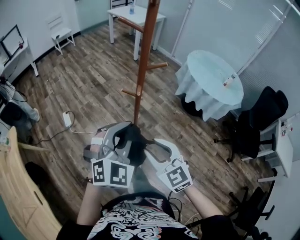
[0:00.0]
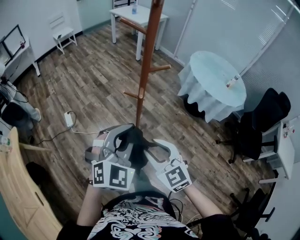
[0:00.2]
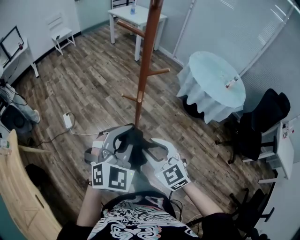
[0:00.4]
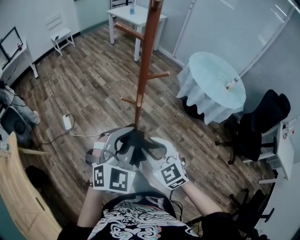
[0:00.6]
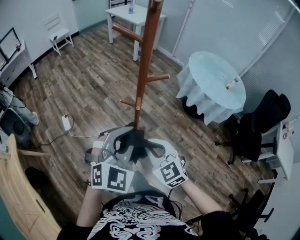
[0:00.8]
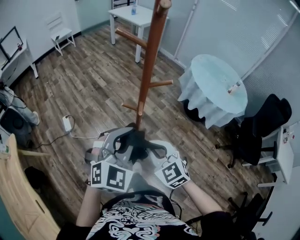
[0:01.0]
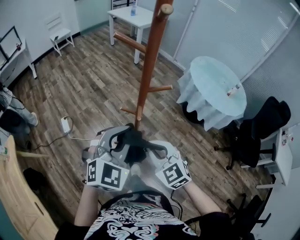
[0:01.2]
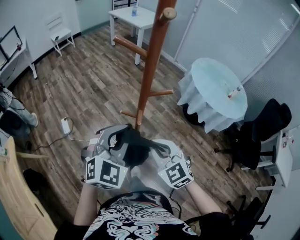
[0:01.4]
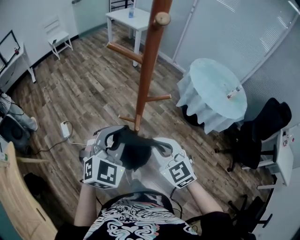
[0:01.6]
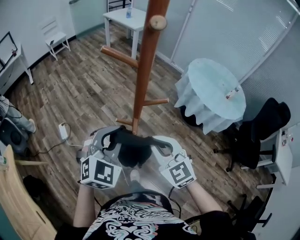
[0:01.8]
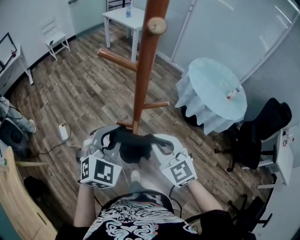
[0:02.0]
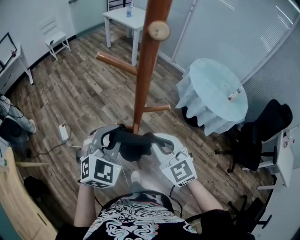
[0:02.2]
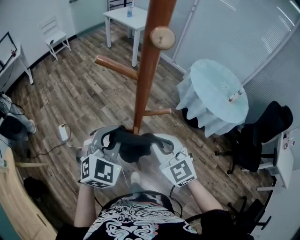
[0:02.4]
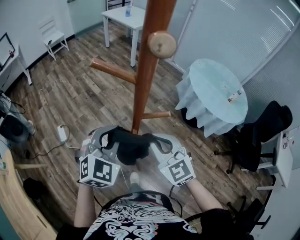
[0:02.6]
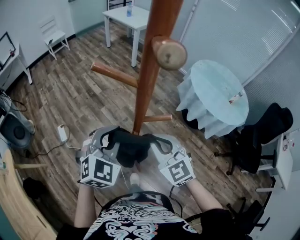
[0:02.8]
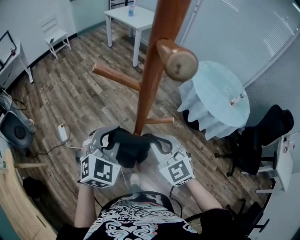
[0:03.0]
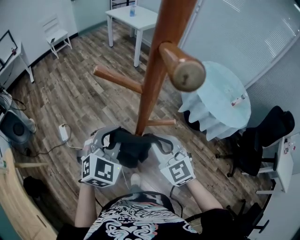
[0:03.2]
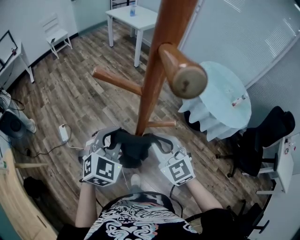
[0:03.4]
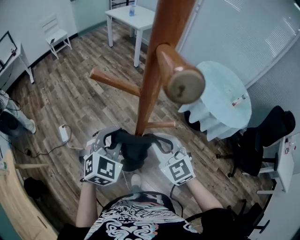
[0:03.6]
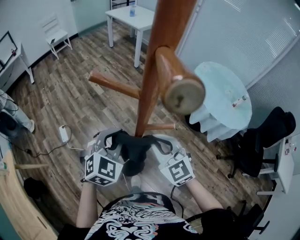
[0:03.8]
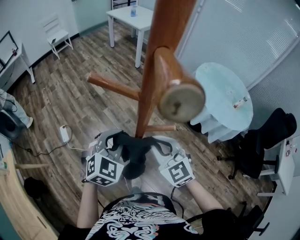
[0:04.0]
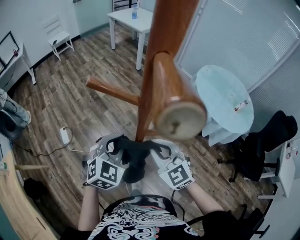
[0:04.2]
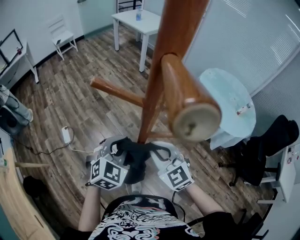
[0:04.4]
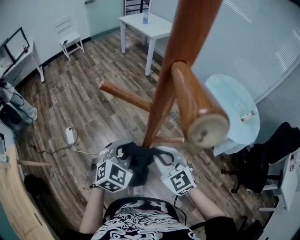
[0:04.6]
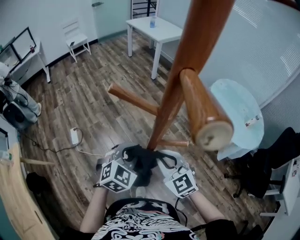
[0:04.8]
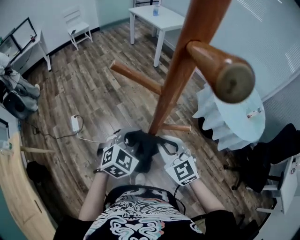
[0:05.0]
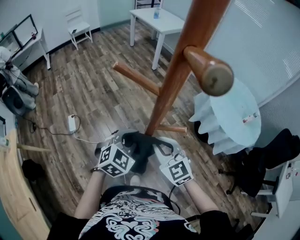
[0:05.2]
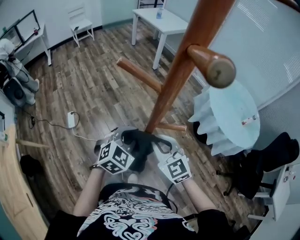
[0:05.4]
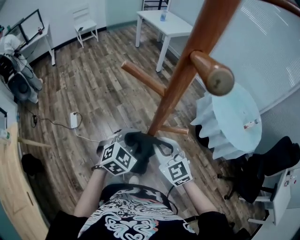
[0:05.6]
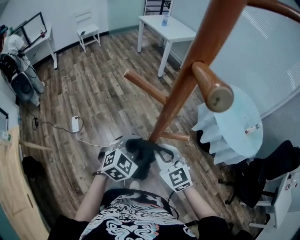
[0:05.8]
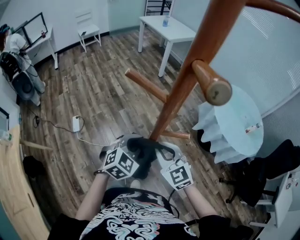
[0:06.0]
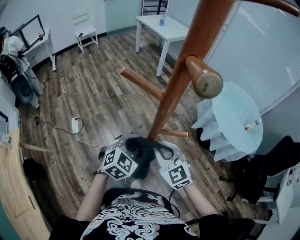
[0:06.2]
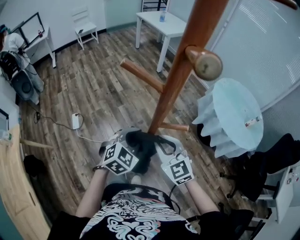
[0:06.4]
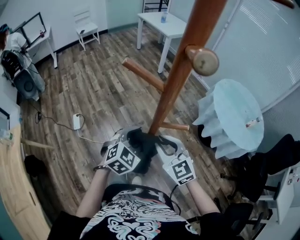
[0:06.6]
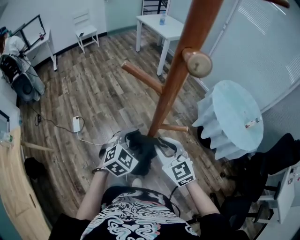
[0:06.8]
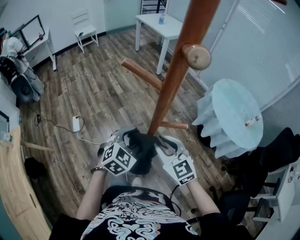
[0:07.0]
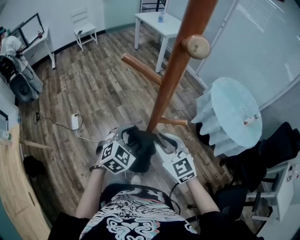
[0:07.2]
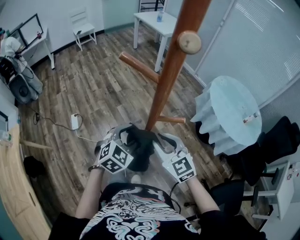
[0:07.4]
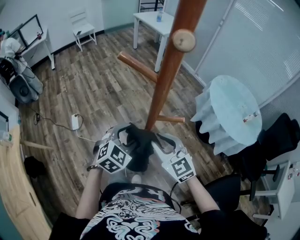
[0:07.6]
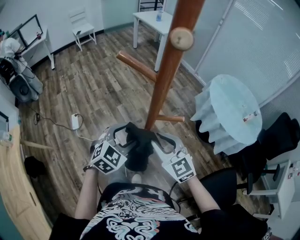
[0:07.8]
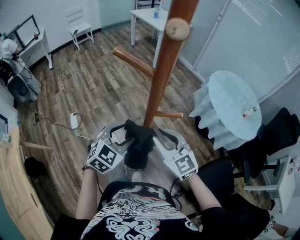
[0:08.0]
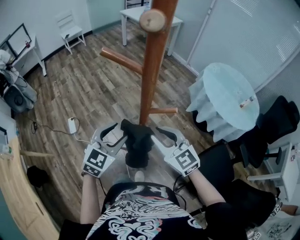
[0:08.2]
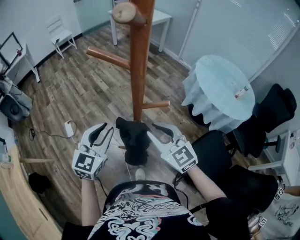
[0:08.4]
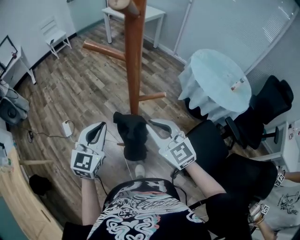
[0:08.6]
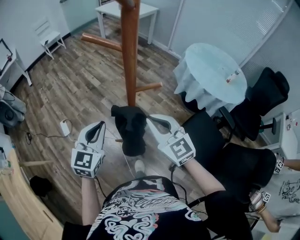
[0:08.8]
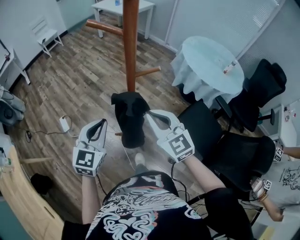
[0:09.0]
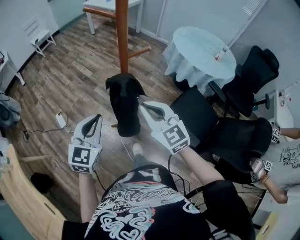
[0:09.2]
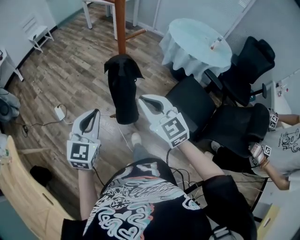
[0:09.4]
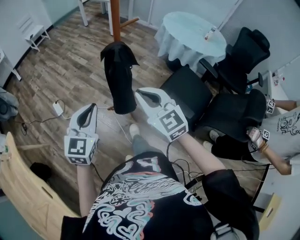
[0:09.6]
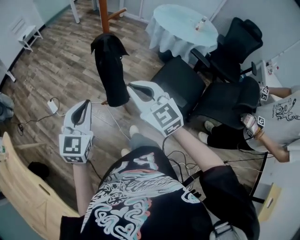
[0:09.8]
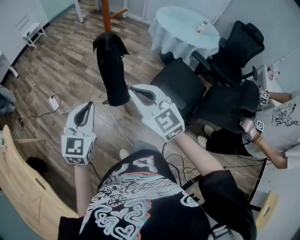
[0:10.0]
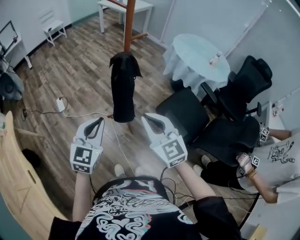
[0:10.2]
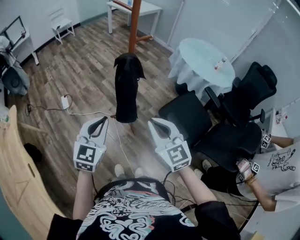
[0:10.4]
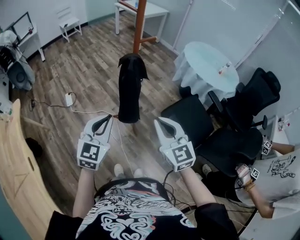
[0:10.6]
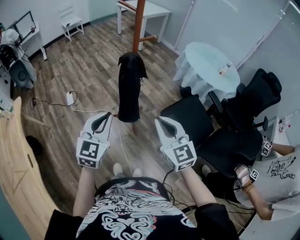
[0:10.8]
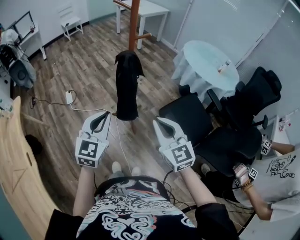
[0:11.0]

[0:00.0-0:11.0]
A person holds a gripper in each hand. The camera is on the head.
0:00.0 to 0:01.6: The two grippers go about 15 cm forward. The right gripper closes its fingers.
0:01.6 to 0:03.2: Both grippers travel together forward, about 10 cm.
0:03.2 to 0:04.8: The left gripper travels downward by roughly 10 cm.
0:04.8 to 0:06.2: There are only small adjustments of the grippers.
0:06.2 to 0:07.8: The right gripper opens up. The left gripper opens.
0:07.8 to 0:09.4: The right gripper shifts about 20 cm backward, and closes; the left gripper goes roughly 25 cm backward and to the left, swivels some 20 degrees, and closes its fingers.
0:09.4 to 0:11.0: The grippers both shift backward and to the right by about 20 cm.

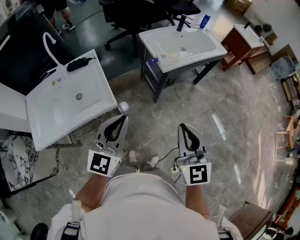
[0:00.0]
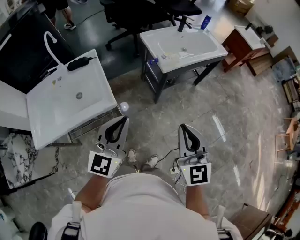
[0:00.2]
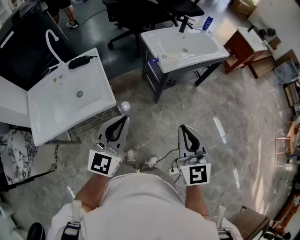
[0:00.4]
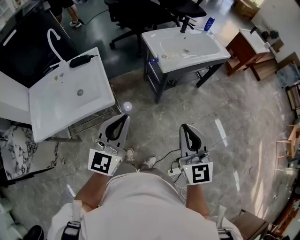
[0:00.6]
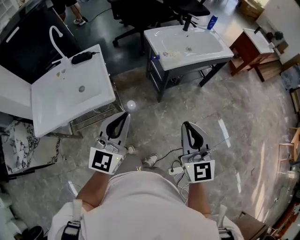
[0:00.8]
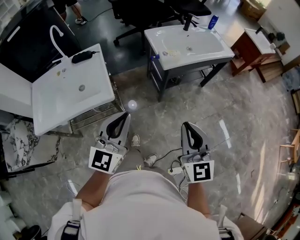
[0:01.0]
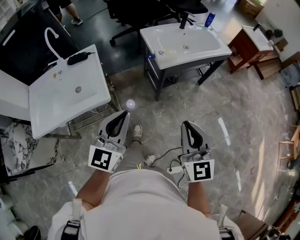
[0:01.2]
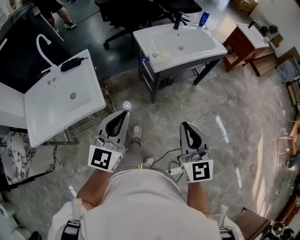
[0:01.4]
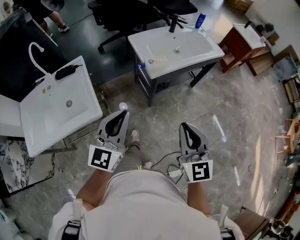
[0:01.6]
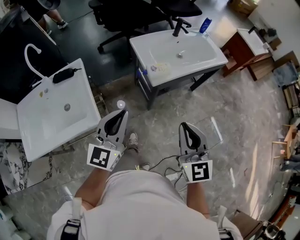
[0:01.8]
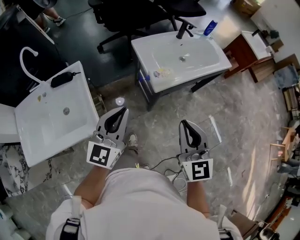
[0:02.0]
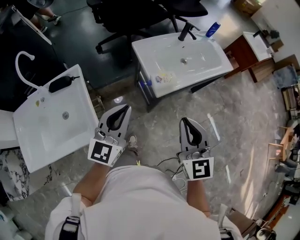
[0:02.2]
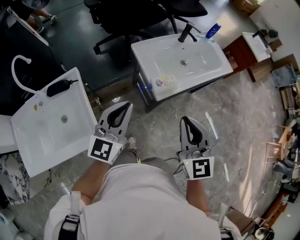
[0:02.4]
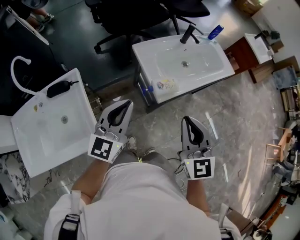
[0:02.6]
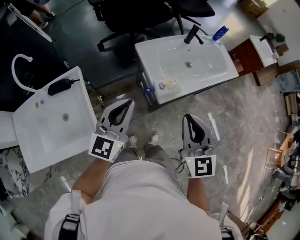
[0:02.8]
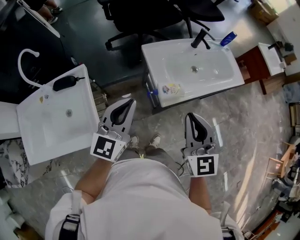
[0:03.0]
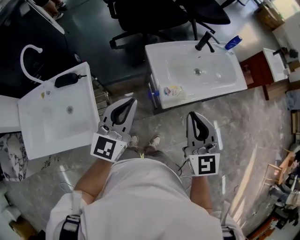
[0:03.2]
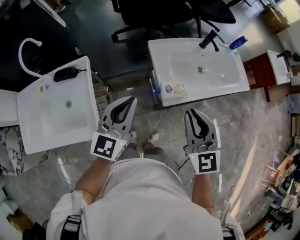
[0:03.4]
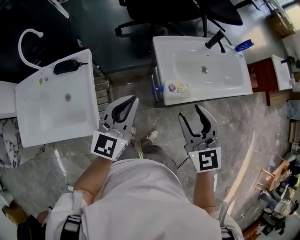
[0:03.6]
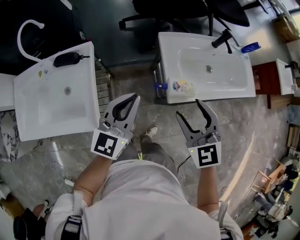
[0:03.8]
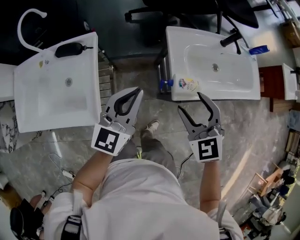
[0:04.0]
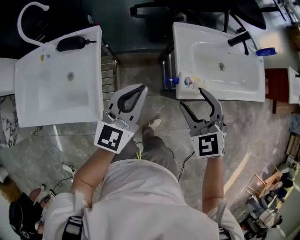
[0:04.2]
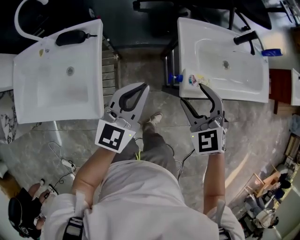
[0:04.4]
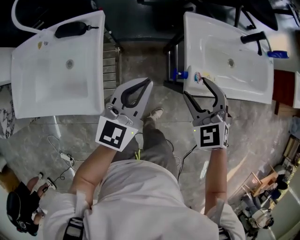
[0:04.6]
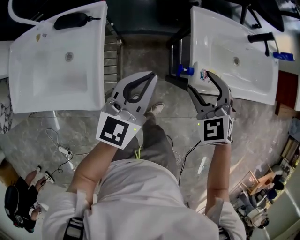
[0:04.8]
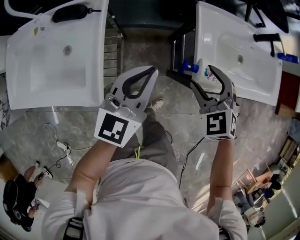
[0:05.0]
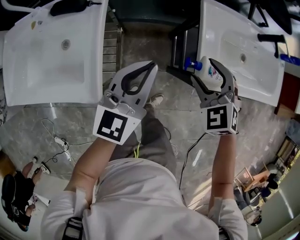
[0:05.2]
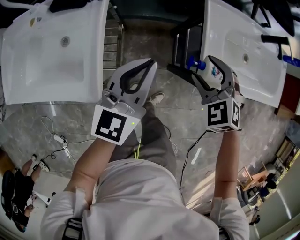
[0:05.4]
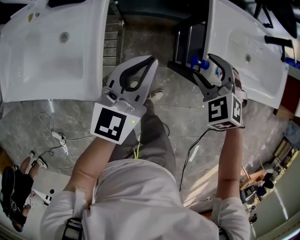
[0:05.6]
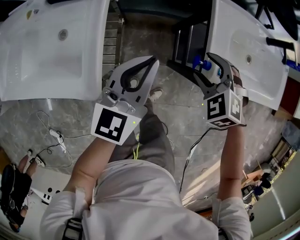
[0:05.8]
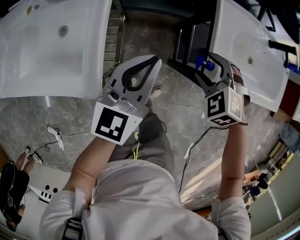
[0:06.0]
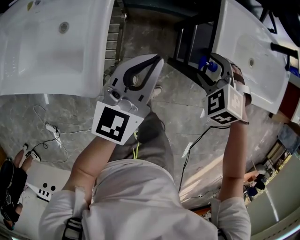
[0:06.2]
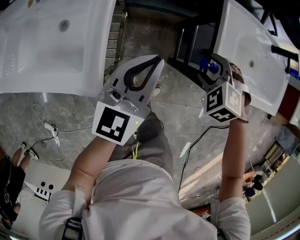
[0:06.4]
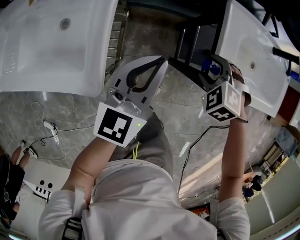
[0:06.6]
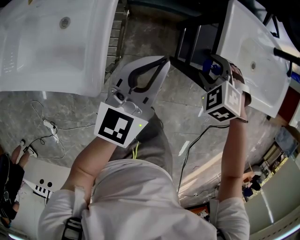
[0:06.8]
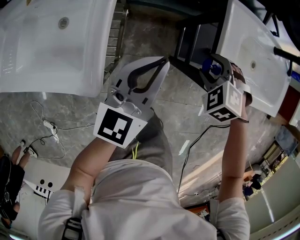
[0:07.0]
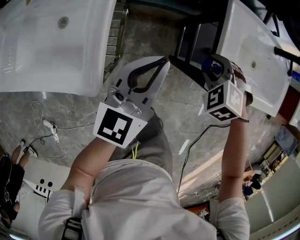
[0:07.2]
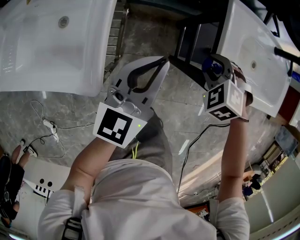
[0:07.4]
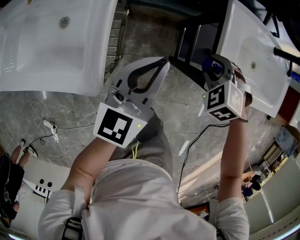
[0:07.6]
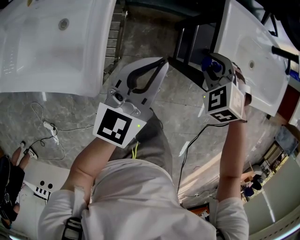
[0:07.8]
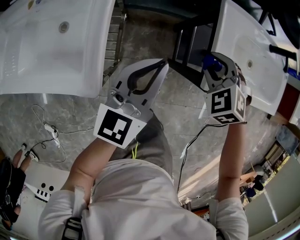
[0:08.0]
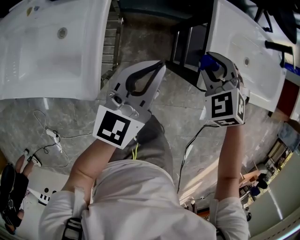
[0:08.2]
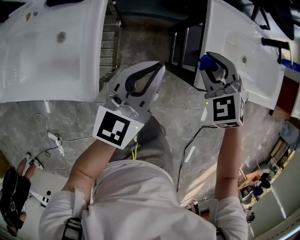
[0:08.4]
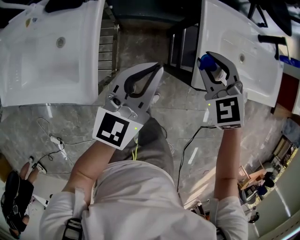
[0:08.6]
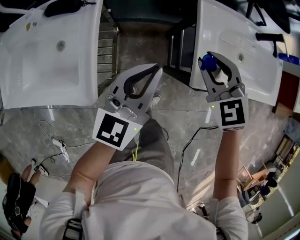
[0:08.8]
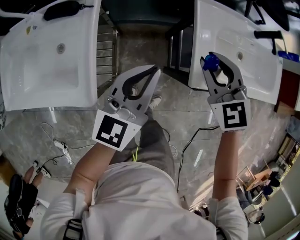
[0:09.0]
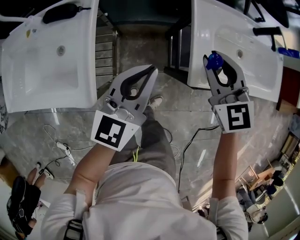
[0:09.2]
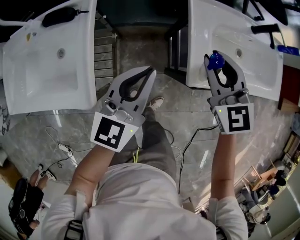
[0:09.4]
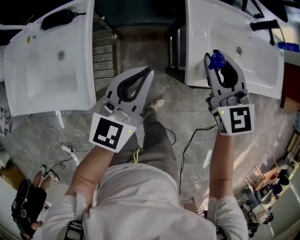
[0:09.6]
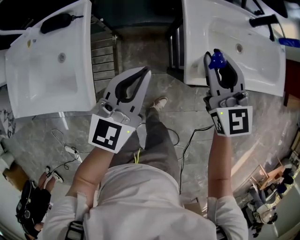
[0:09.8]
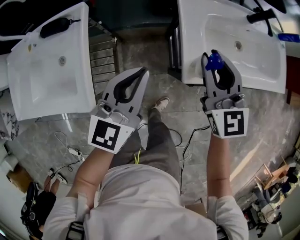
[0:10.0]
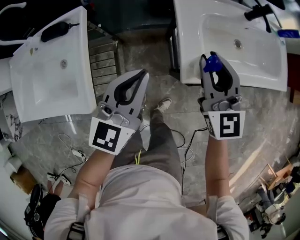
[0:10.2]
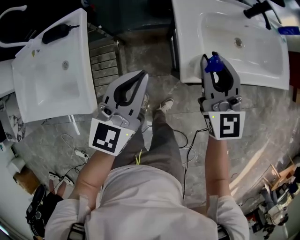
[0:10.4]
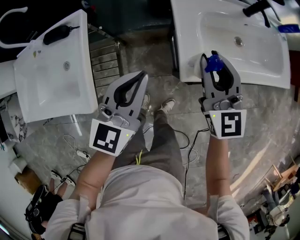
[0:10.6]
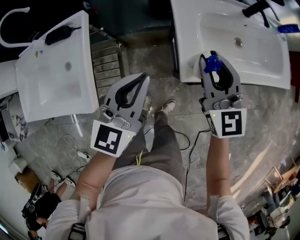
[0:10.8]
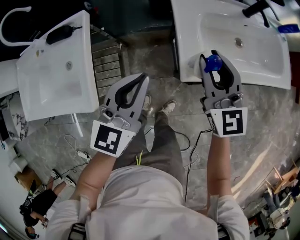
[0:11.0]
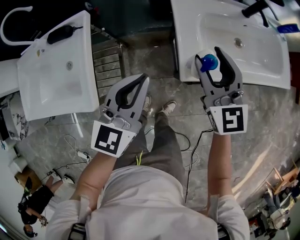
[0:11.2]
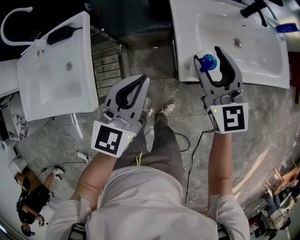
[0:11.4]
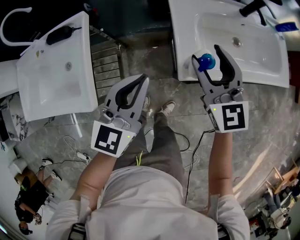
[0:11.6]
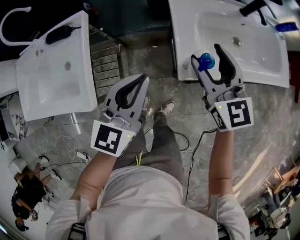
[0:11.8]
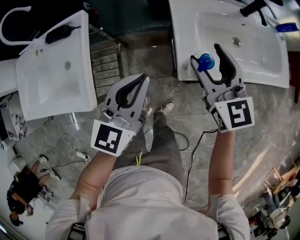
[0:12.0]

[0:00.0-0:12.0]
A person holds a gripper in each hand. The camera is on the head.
0:00.0 to 0:01.6: The grippers both shift to the right and forward by about 15 cm.
0:01.6 to 0:03.0: Both grippers travel together forward, some 25 cm.
0:03.0 to 0:04.4: The right gripper moves downward, forward and to the left, about 20 cm, swivels about 50 degrees, and opens up, while the left gripper moves downward, about 10 cm.
0:04.4 to 0:06.0: The left gripper shifts some 10 cm downward and to the left. The right gripper is displaced downward by about 15 cm, and turns by approximately 40 degrees.
0:06.0 to 0:07.6: The right gripper closes its fingers.
0:07.6 to 0:09.0: The left gripper goes about 5 cm to the right. Meanwhile the right gripper is displaced upward by approximately 15 cm, and angles its fingers upward, by some 40 degrees.
0:09.0 to 0:10.4: The right gripper shifts roughly 10 cm to the right, and rotates approximately 40 degrees, while the left gripper moves to the right, some 5 cm.
0:10.4 to 0:12.0: The right gripper opens.

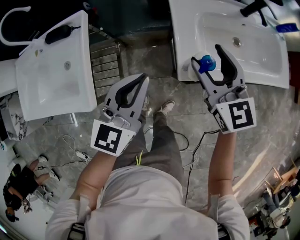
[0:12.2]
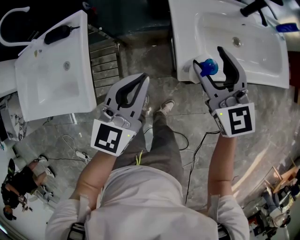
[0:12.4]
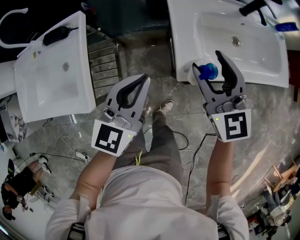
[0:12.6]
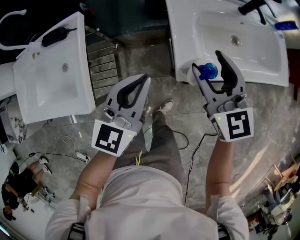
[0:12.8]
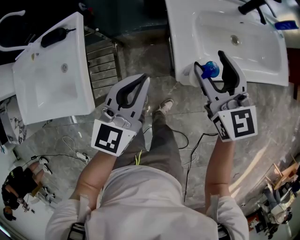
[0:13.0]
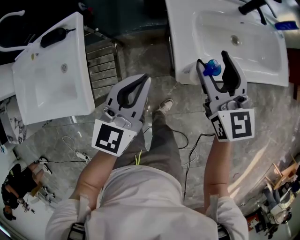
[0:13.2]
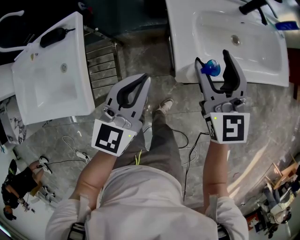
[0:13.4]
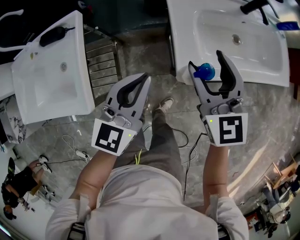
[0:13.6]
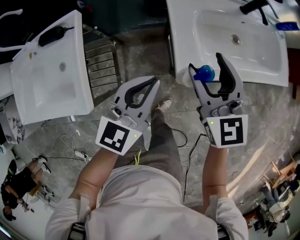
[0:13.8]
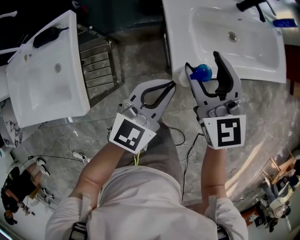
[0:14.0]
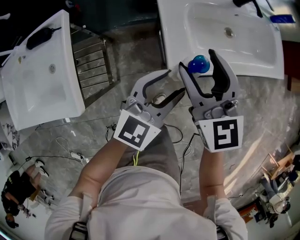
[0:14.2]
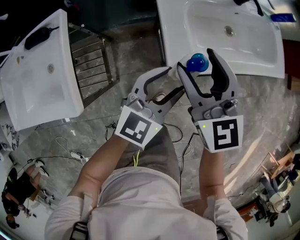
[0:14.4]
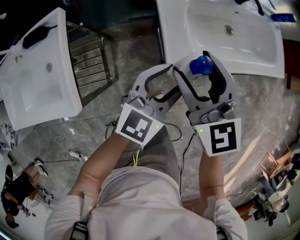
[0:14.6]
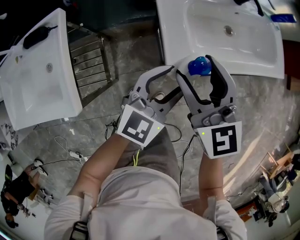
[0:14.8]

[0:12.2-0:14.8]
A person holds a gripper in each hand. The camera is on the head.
0:12.2 to 0:13.4: The grippers stay close to where they were, moving slightly.
0:13.4 to 0:14.8: The left gripper shifts about 15 cm to the right and downward, rotates about 20 degrees, and opens.
